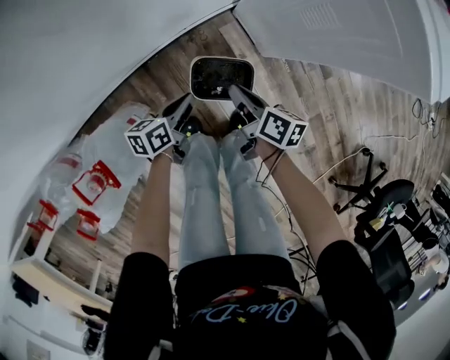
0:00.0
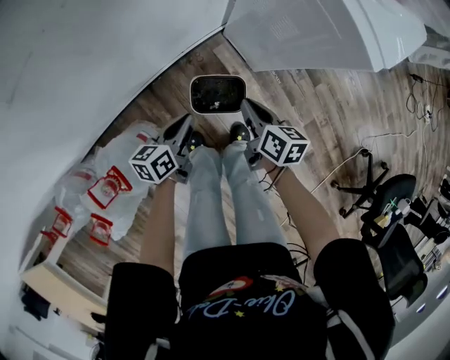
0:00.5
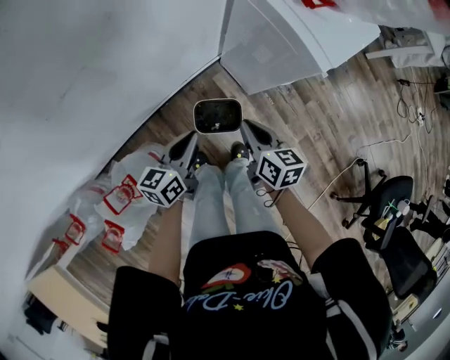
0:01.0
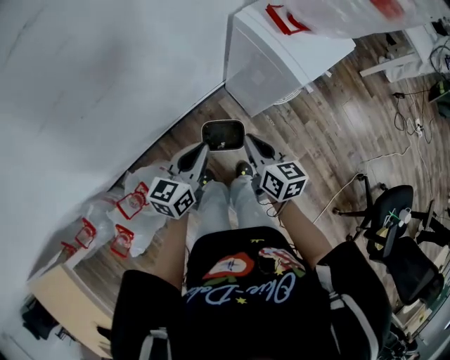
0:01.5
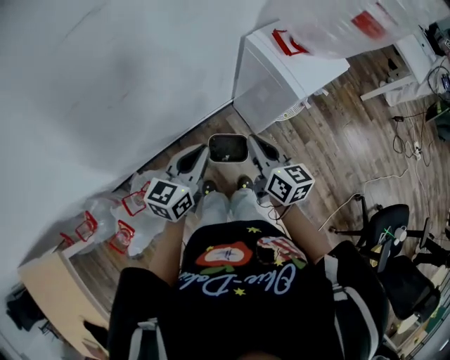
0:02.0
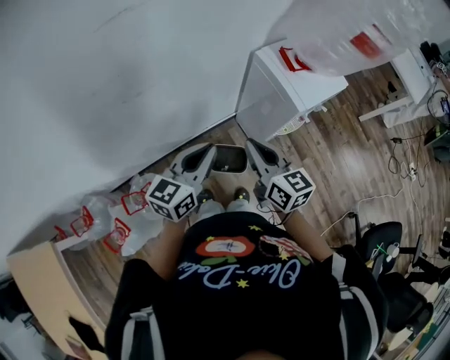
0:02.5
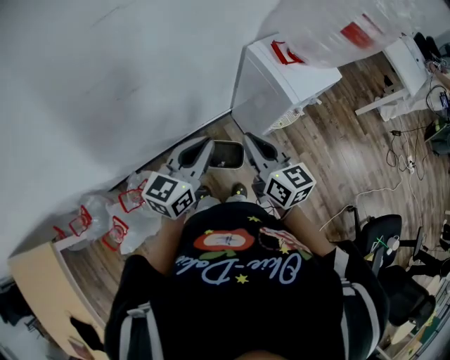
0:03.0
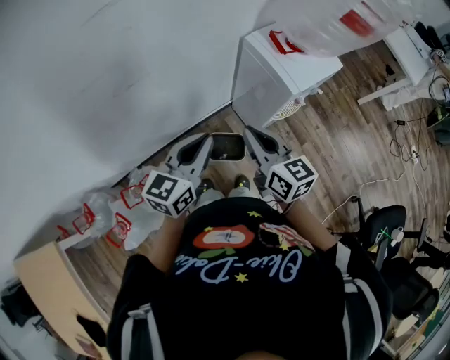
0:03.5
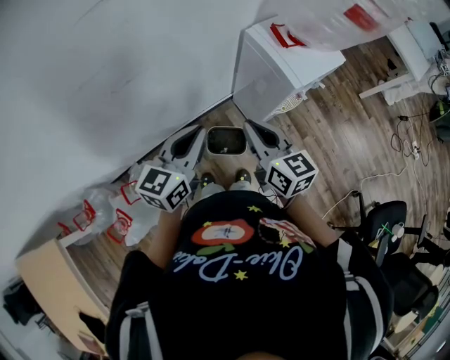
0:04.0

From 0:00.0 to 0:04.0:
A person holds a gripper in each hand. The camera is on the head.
From 0:00.0 to 0:02.0: The right gripper is displaced upward by approximately 40 cm, and swivels roughly 40 degrees.
From 0:02.0 to 0:04.0: The right gripper goes some 5 cm upward.

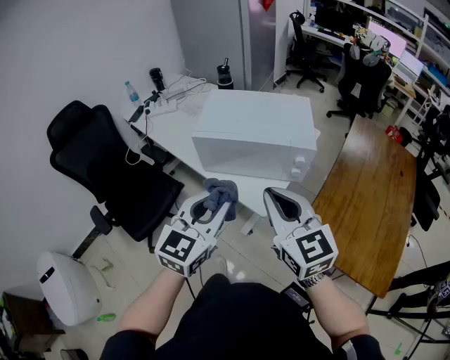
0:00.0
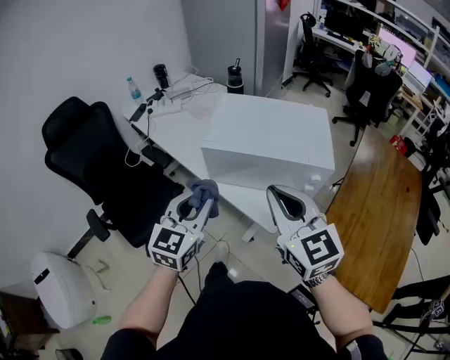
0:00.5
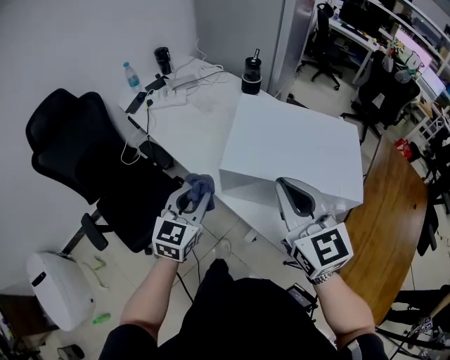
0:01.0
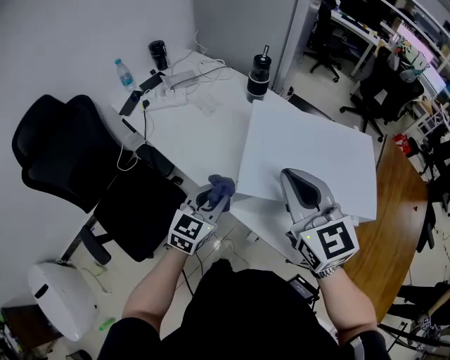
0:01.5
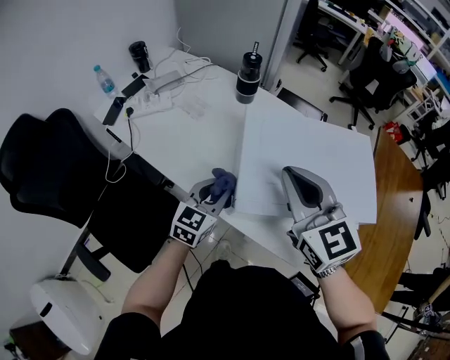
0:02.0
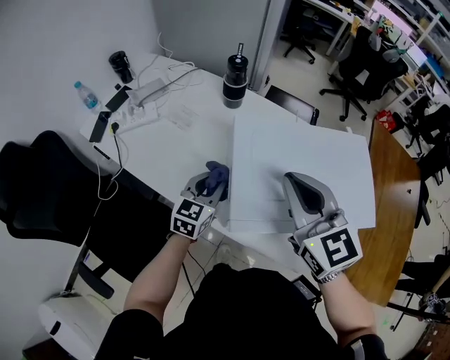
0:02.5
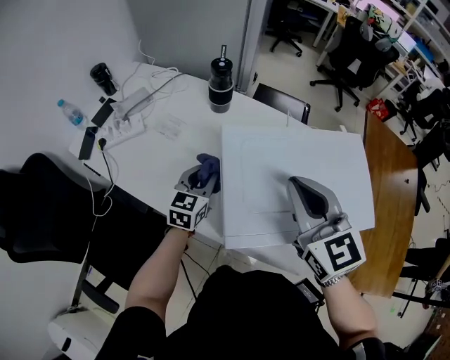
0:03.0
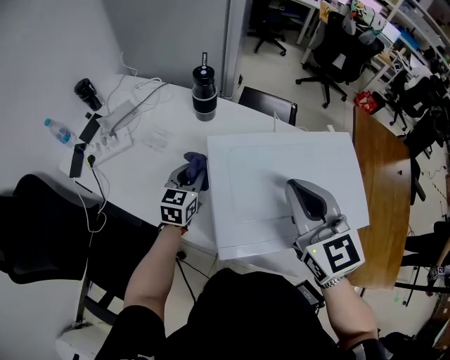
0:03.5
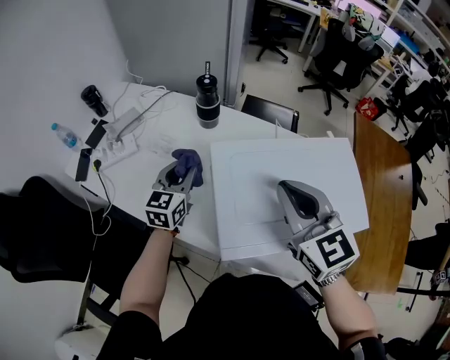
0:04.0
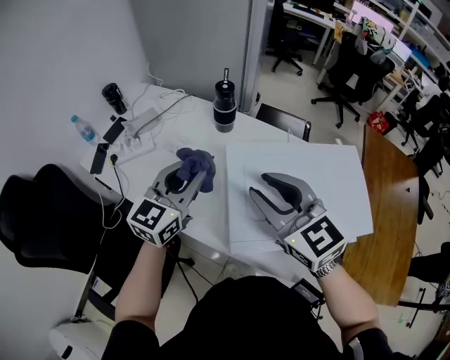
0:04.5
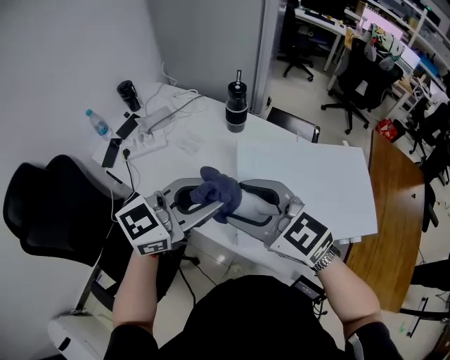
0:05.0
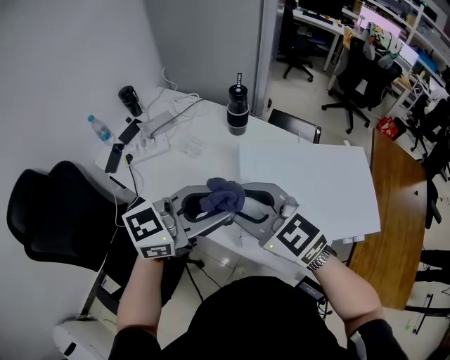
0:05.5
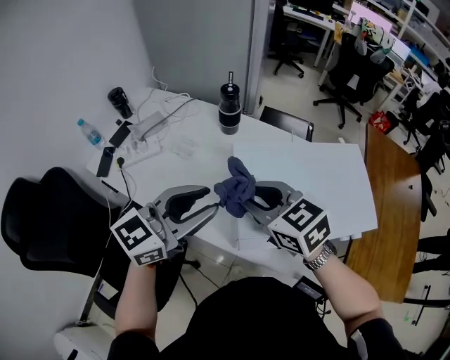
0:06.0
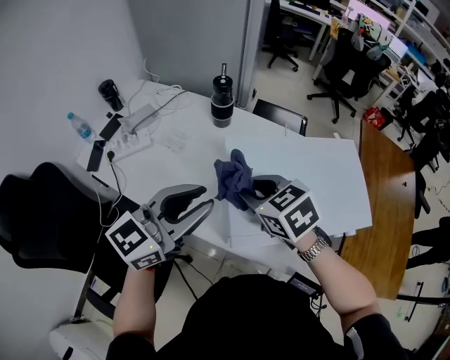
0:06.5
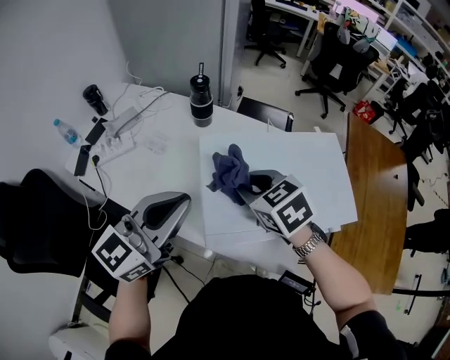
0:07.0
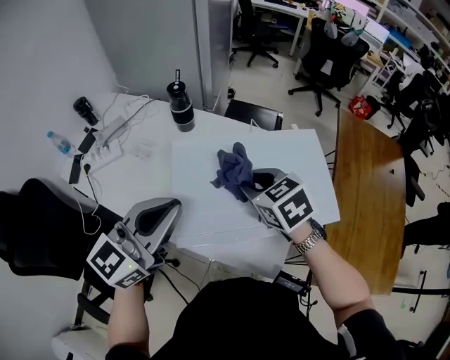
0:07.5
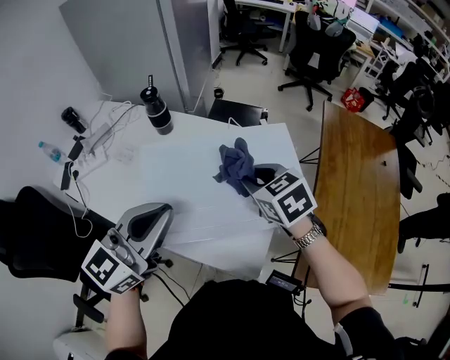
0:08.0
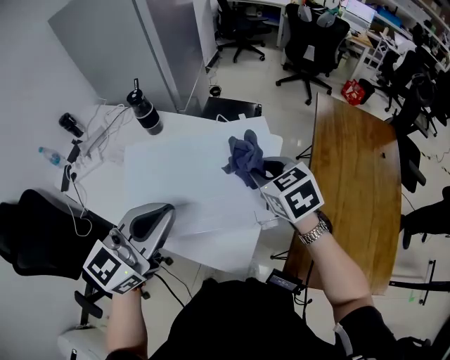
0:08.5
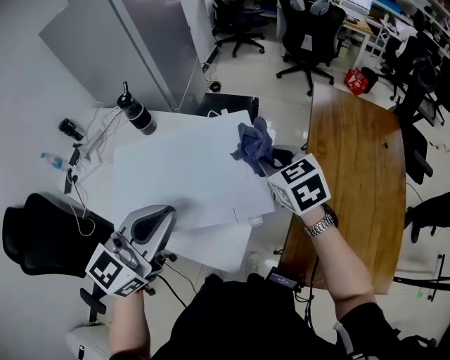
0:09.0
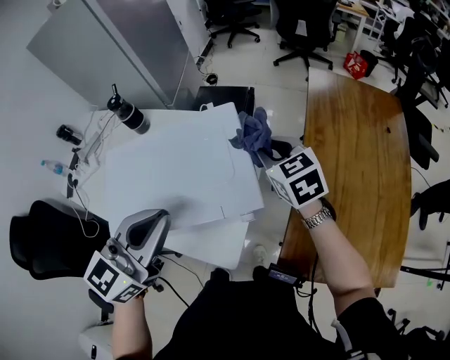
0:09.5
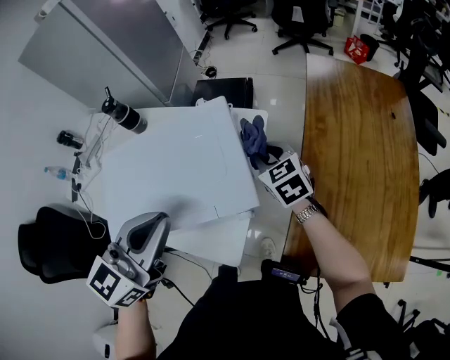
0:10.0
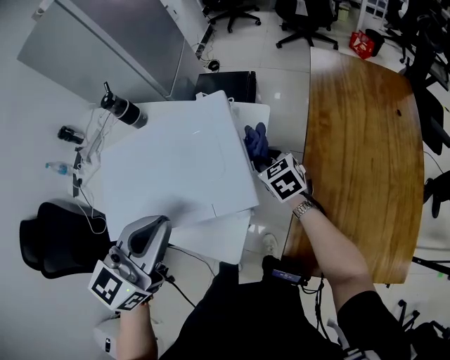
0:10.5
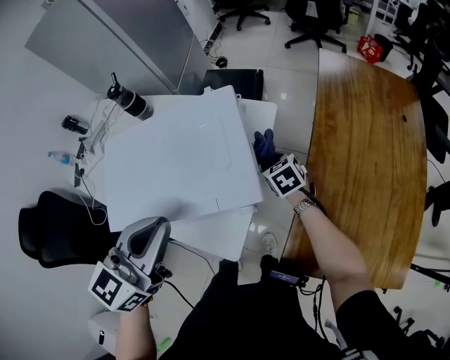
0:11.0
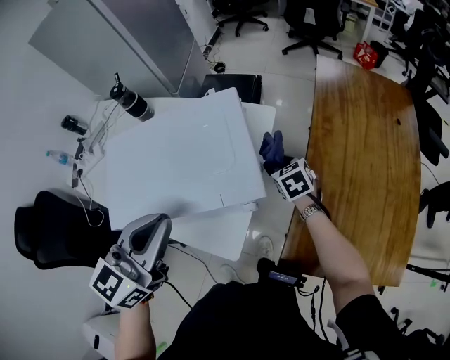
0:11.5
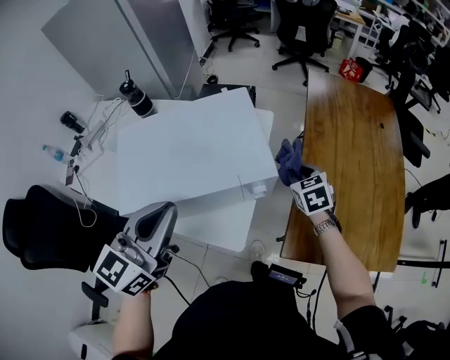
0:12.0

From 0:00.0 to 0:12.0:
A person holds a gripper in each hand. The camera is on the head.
From 0:00.0 to 0:02.0: The left gripper shifts approximately 50 cm forward, downward and to the left. Meanwhile the right gripper goes roughly 40 cm forward and to the left.
From 0:02.0 to 0:04.0: The right gripper goes about 5 cm forward, while the left gripper is displaced forward by about 20 cm.
From 0:04.0 to 0:06.0: The left gripper shifts about 25 cm upward and backward, and turns by roughly 30 degrees. Meanwhile the right gripper shifts approximately 10 cm to the left, changes its angle by roughly 30 degrees, and opens, then closes once more.
From 0:06.0 to 0:08.0: The left gripper travels to the right by approximately 20 cm, and closes up; the right gripper is displaced to the right by approximately 25 cm.
From 0:08.0 to 0:10.0: The left gripper shifts about 20 cm to the right. Meanwhile the right gripper heads to the right and downward, covering about 20 cm.
From 0:10.0 to 0:12.0: The left gripper moves backward and to the left, roughly 10 cm. The right gripper goes some 10 cm backward and to the right, and reaches roughly 10 cm downward, then returns.

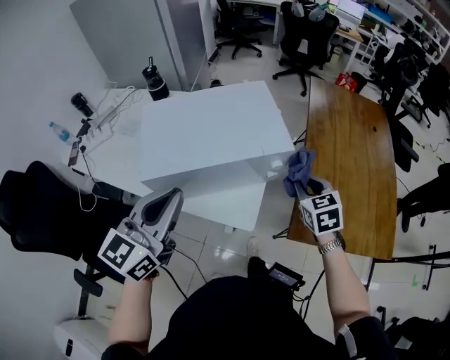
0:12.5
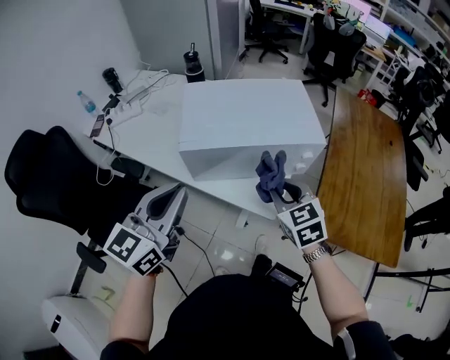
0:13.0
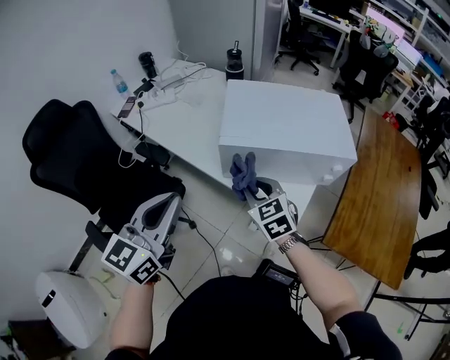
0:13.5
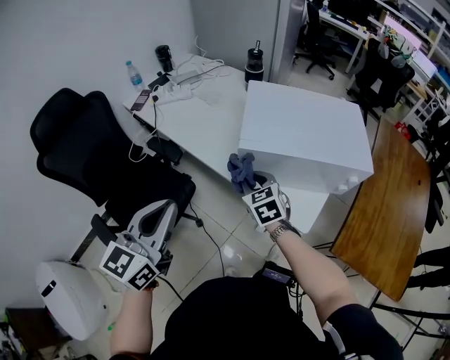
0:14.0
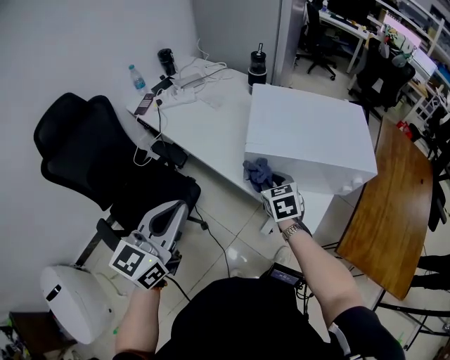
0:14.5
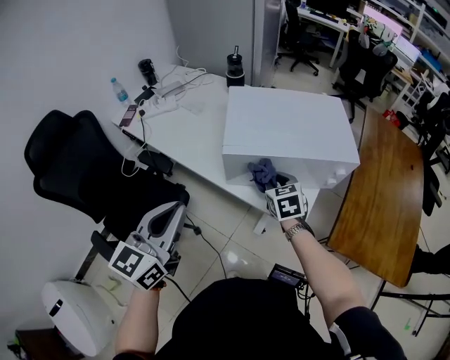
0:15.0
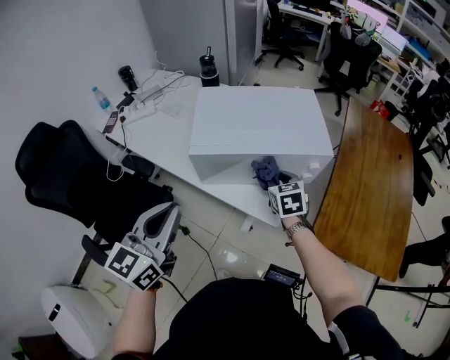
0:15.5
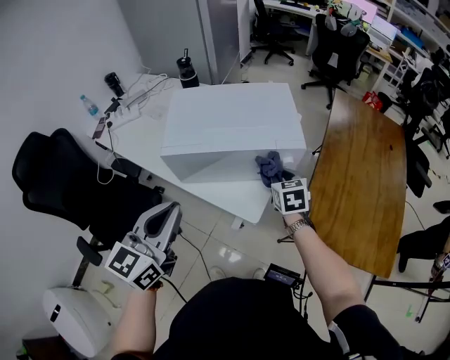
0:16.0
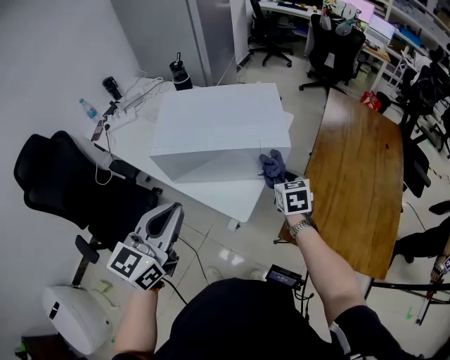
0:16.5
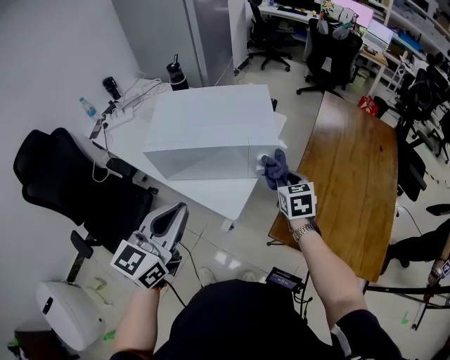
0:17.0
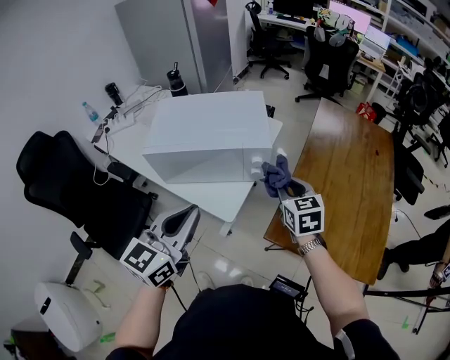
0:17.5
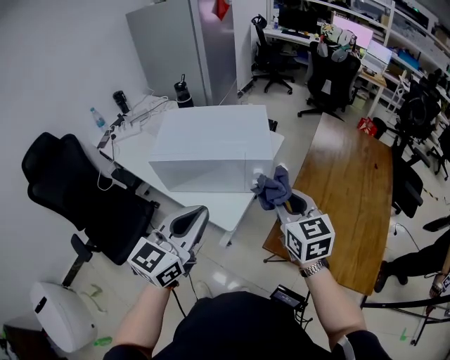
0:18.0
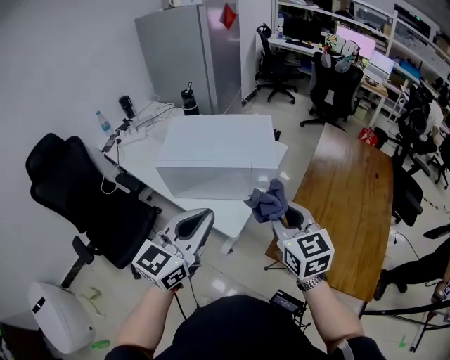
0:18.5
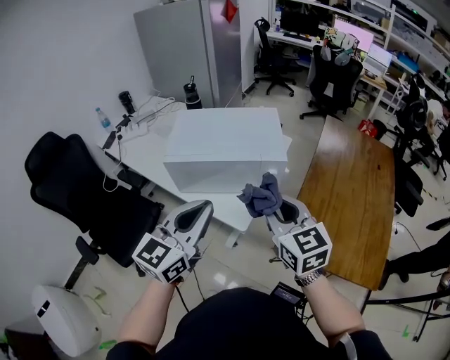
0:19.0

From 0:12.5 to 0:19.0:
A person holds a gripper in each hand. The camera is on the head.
From 0:12.5 to 0:14.5: The left gripper moves some 25 cm, and rotates some 20 degrees, while the right gripper moves about 40 cm, and changes its angle by roughly 20 degrees.
From 0:14.5 to 0:17.0: The grippers both shift to the right by approximately 35 cm.
From 0:17.0 to 0:19.0: The right gripper is displaced upward, backward and to the left by about 25 cm, and changes its angle by some 30 degrees.

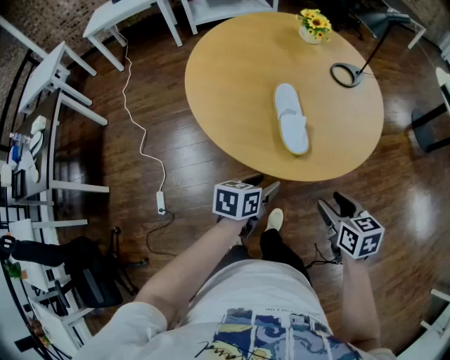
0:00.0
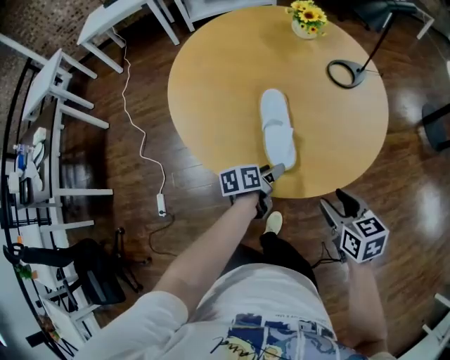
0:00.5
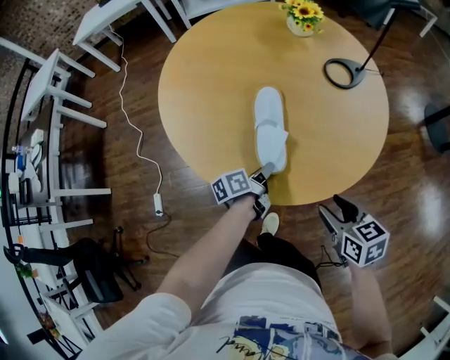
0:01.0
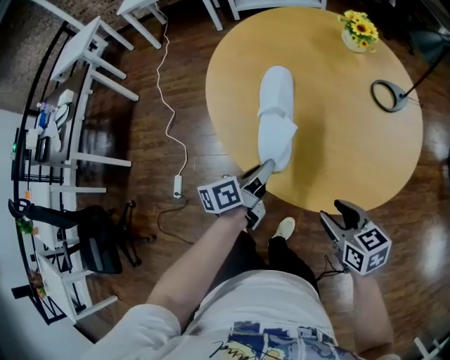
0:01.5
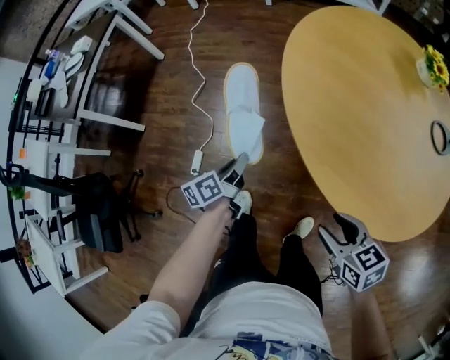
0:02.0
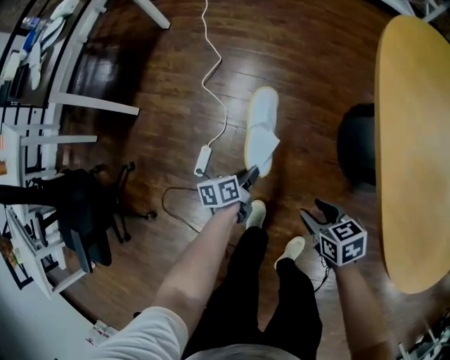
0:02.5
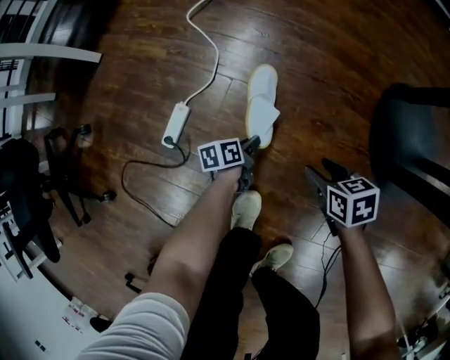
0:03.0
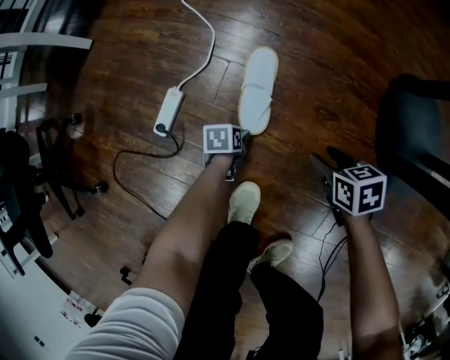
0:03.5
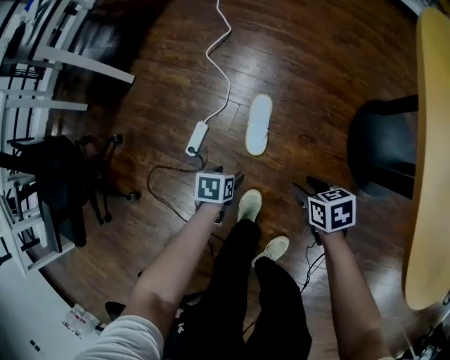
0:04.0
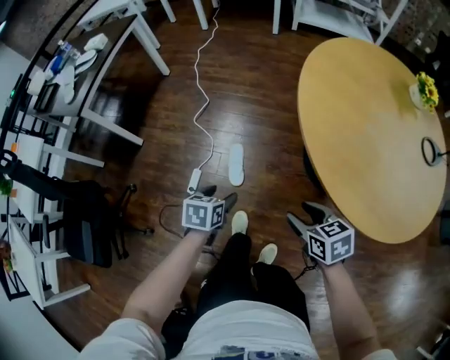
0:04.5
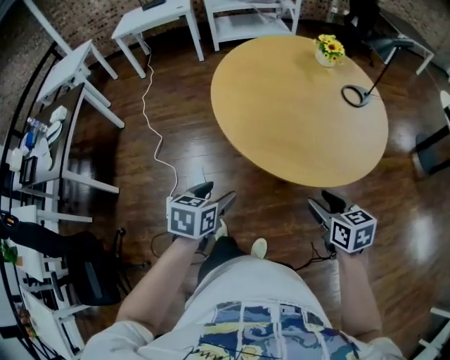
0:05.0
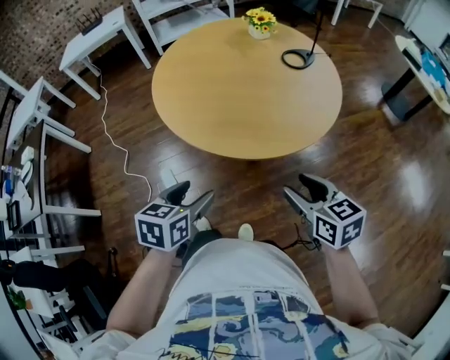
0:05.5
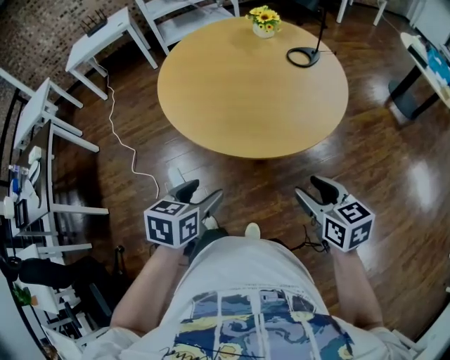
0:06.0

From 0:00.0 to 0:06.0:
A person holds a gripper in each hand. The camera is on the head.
From 0:00.0 to 0:02.0: The right gripper moves about 25 cm, and swivels approximately 40 degrees, while the left gripper swings up and down, approximately 10 cm each way, with 2 reversals, rotates some 60 degrees, and closes its fingers.
From 0:02.0 to 0:04.0: Both grippers move downward and to the left, about 50 cm. The left gripper tilts its fingers approximately 50 degrees downward, and opens its fingers.
From 0:04.0 to 0:06.0: Both grippers are carried roughly 60 cm. Both grippers travel together upward, about 70 cm. The left gripper rolls clockwise, seen from behind, by approximately 50 degrees; the right gripper rotates roughly 50 degrees.
